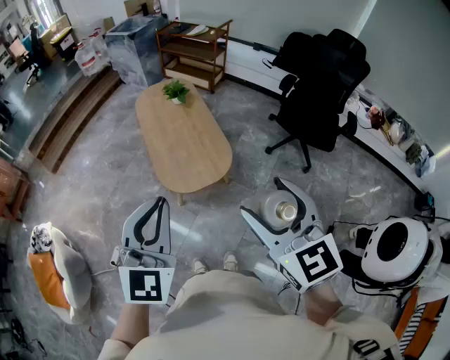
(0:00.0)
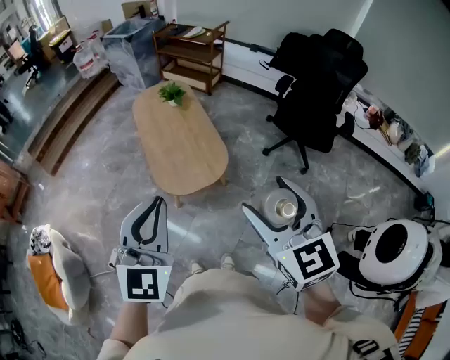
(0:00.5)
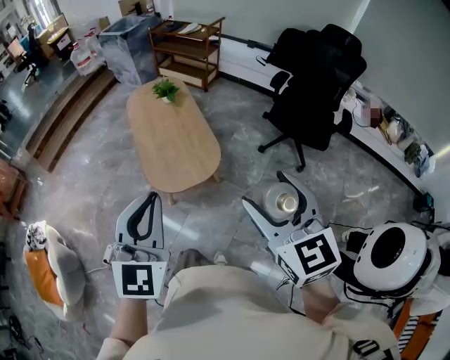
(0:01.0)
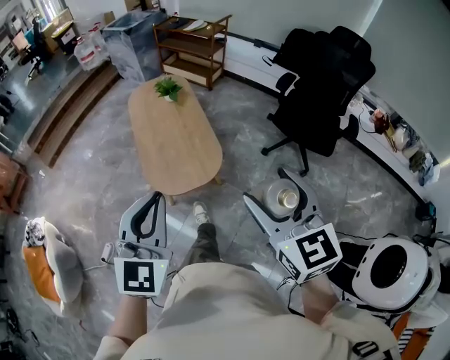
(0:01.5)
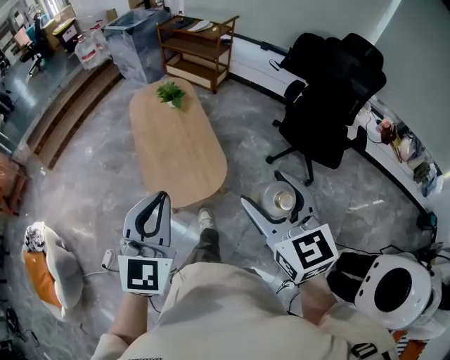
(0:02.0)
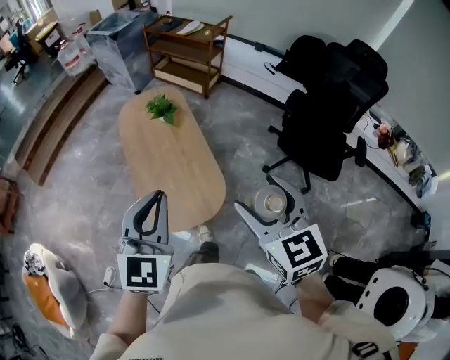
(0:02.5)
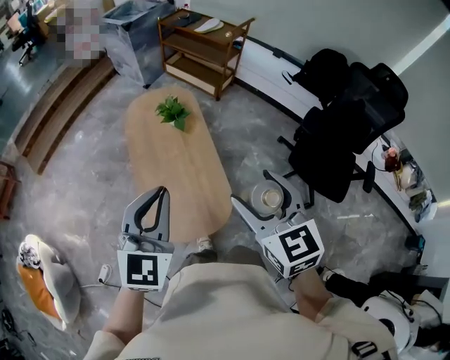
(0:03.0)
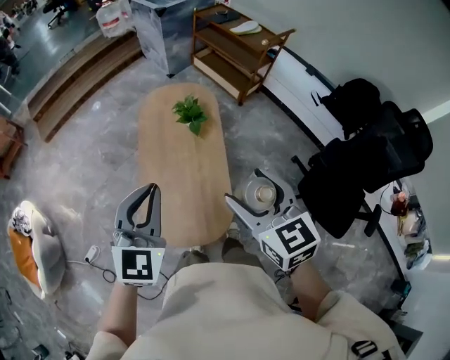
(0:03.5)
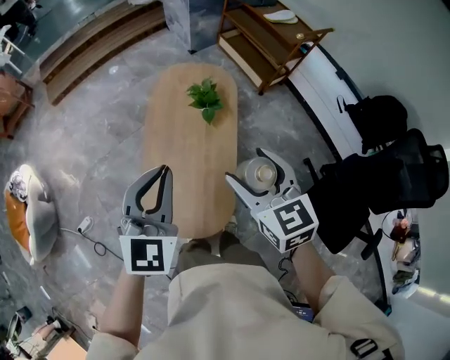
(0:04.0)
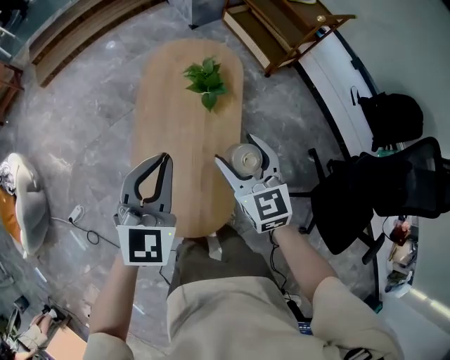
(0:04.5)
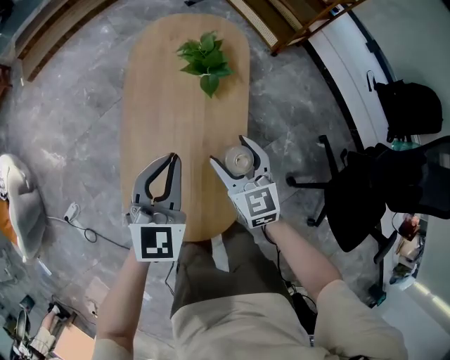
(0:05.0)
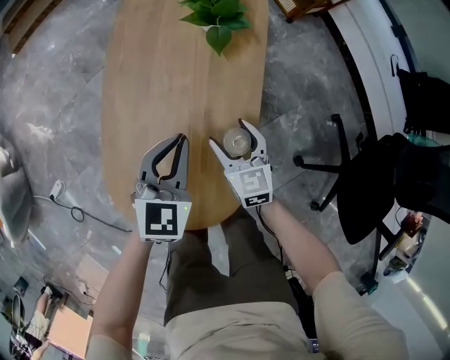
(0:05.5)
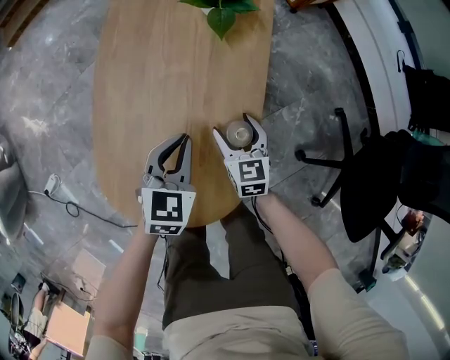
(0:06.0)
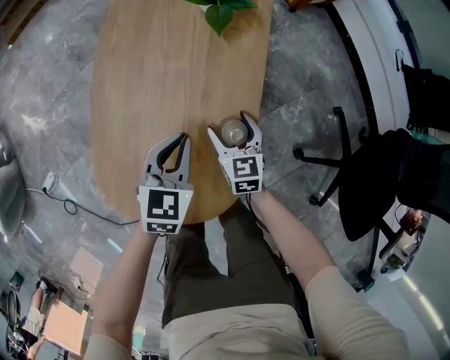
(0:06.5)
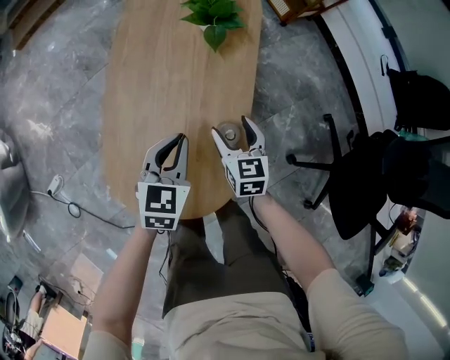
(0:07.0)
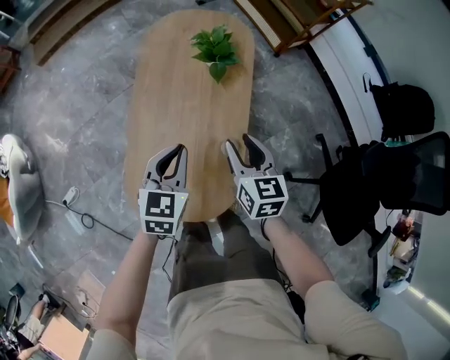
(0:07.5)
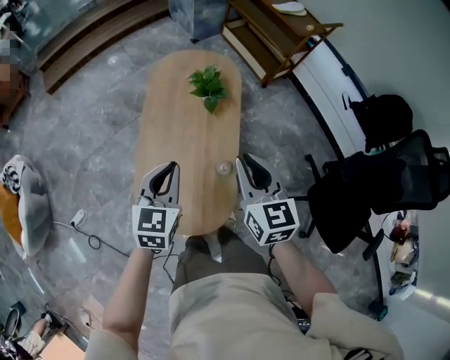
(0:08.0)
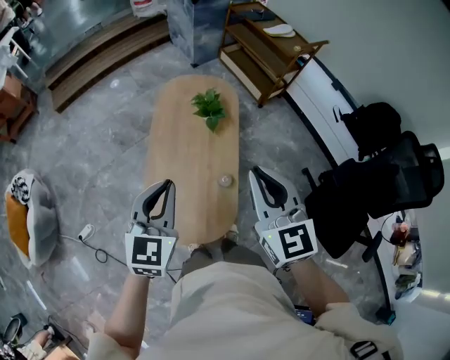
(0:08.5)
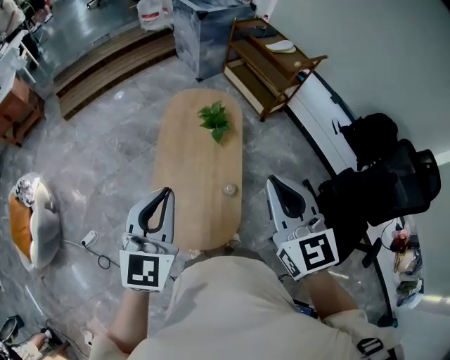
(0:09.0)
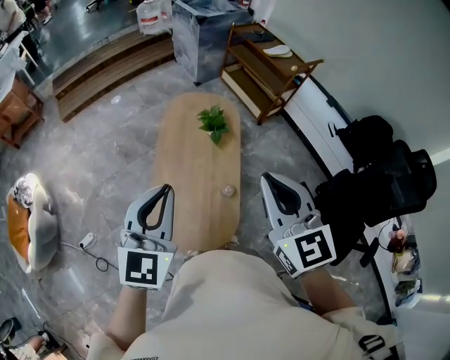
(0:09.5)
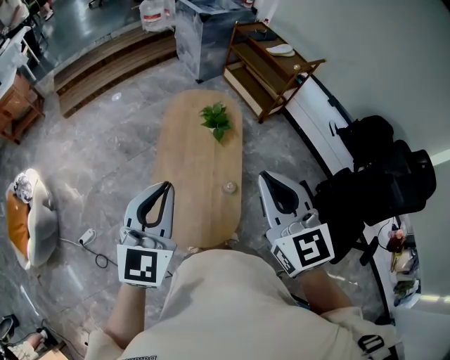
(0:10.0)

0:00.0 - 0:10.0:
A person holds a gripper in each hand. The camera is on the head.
0:00.0 - 0:02.0: The left gripper moves forward, to the right and downward, some 15 cm. Meanwhile the right gripper goes about 20 cm forward and to the right.
0:02.0 - 0:04.0: The pair of grippers is taken some 50 cm. The left gripper swivels approximately 20 degrees, while the right gripper turns by approximately 30 degrees.
0:04.0 - 0:06.0: The two grippers go some 50 cm downward. The left gripper swivels about 30 degrees.
0:06.0 - 0:08.0: The two grippers go roughly 40 cm upward. The right gripper closes.
0:08.0 - 0:10.0: Both grippers travel together upward and backward, some 25 cm.

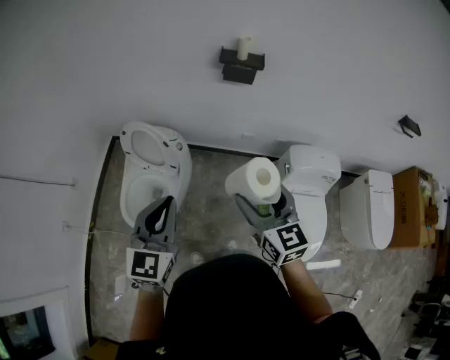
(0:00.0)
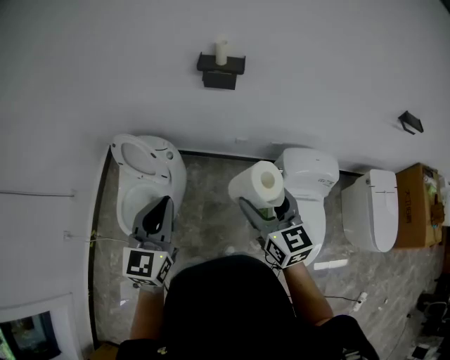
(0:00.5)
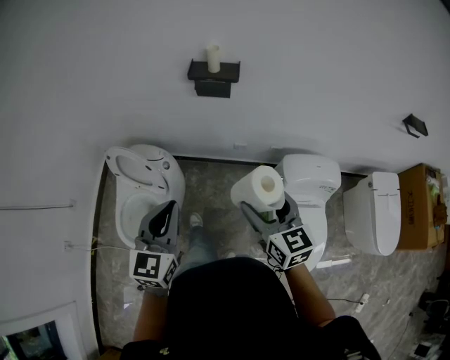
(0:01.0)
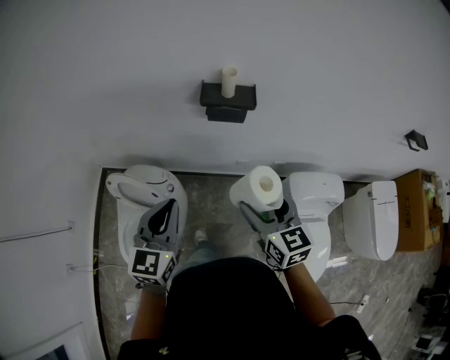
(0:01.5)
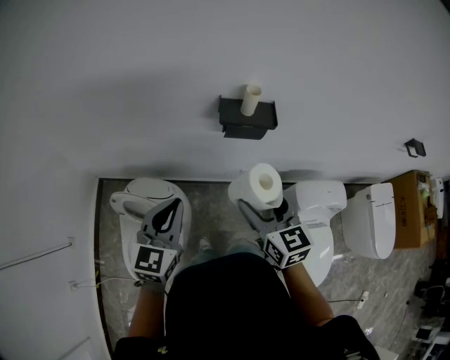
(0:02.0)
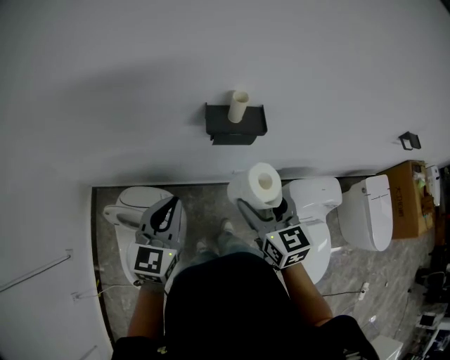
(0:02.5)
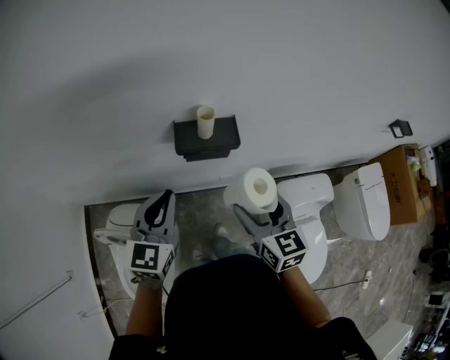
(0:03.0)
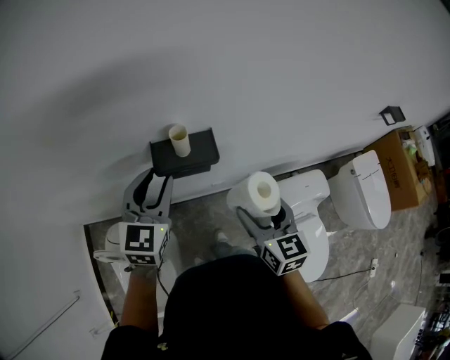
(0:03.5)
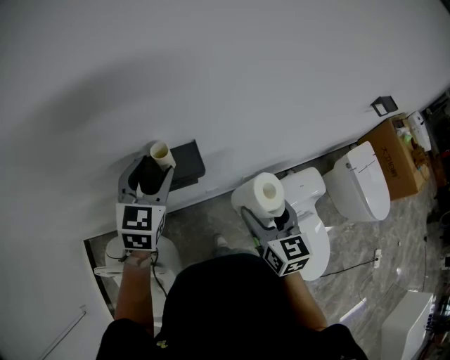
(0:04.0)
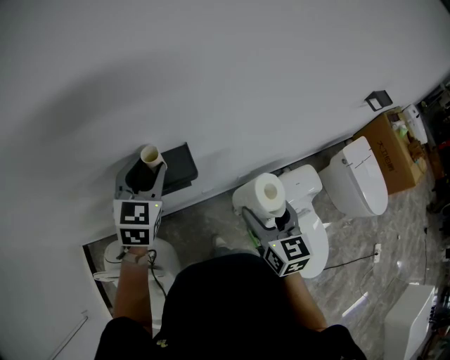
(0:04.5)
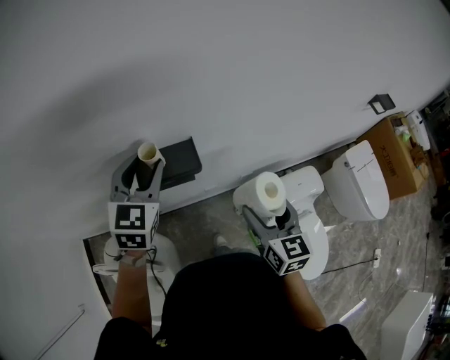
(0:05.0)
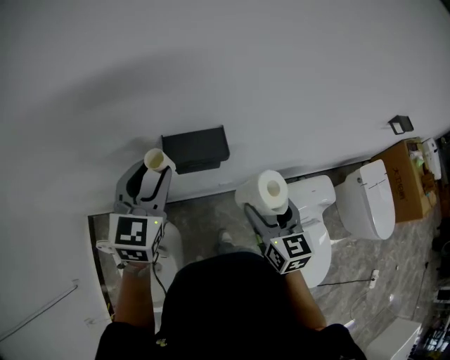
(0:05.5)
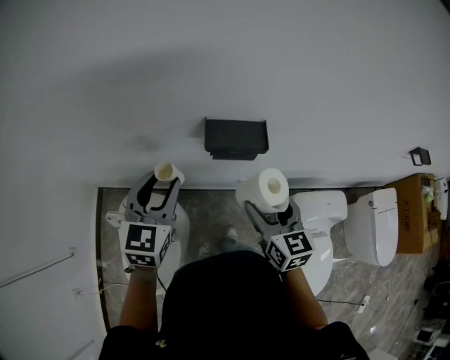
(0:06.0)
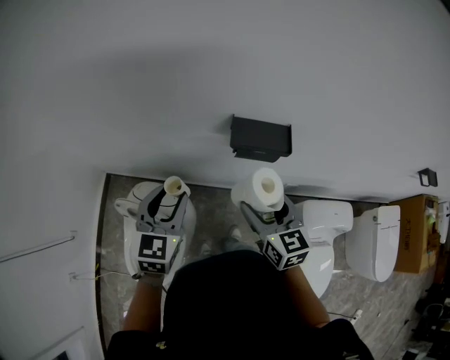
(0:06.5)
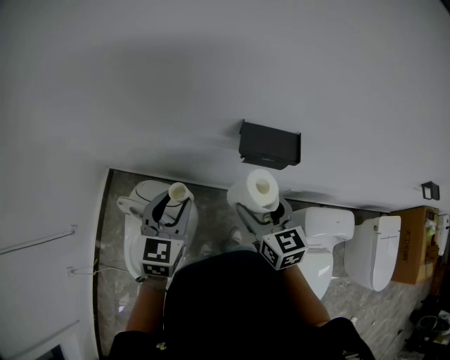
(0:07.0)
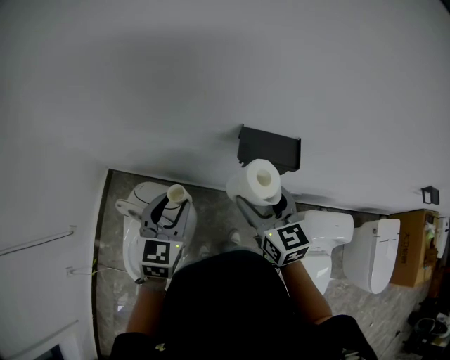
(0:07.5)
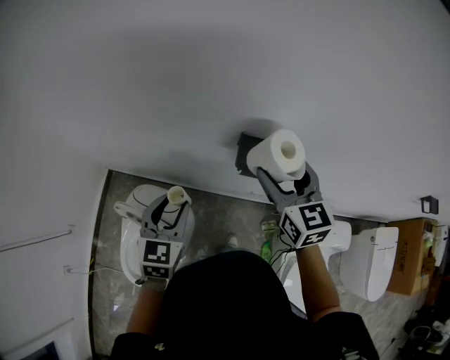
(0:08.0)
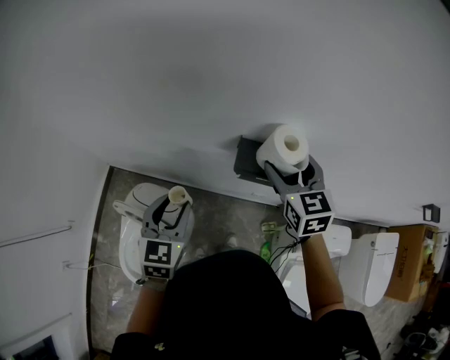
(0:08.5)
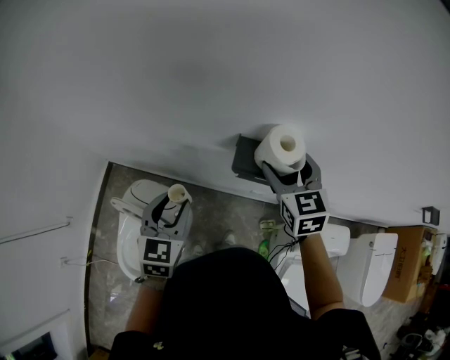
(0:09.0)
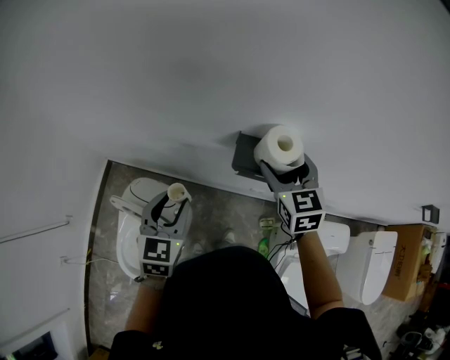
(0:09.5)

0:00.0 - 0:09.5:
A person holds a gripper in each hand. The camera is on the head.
0:00.0 - 0:02.0: The two grippers go some 30 cm forward.
0:02.0 - 0:04.0: The right gripper shifts about 20 cm to the right and forward, and turns by some 20 degrees; the left gripper moves forward and to the right, about 35 cm, and opens its fingers.
0:04.0 - 0:05.5: The left gripper shifts some 10 cm backward and to the left.
0:05.5 - 0:07.5: The right gripper is displaced to the left by approximately 20 cm, and rotates some 30 degrees; the left gripper heads to the left, downward and backward, covering roughly 20 cm, and swivels about 20 degrees.
0:07.5 - 0:09.5: The right gripper heads forward and to the right, covering some 15 cm.

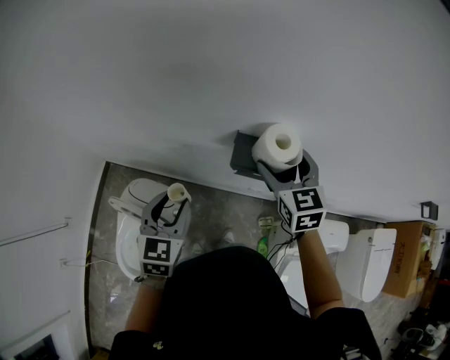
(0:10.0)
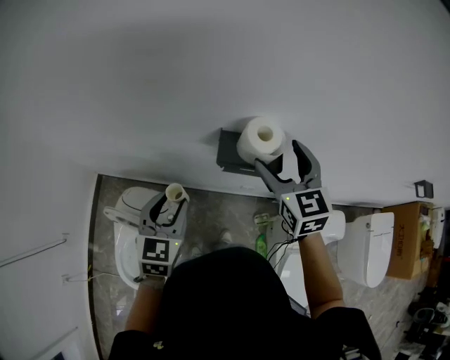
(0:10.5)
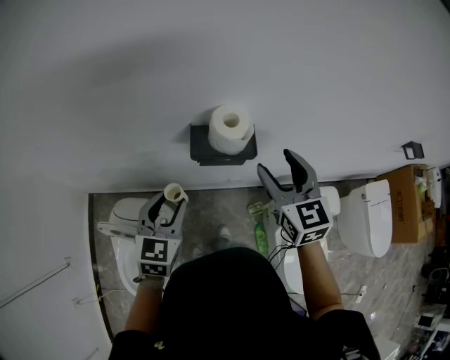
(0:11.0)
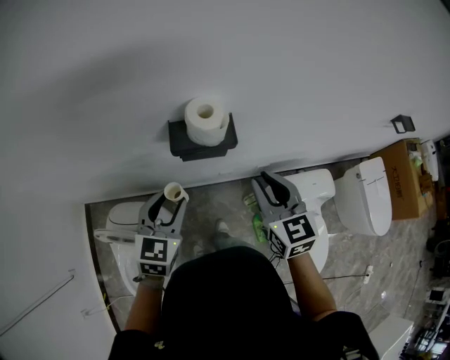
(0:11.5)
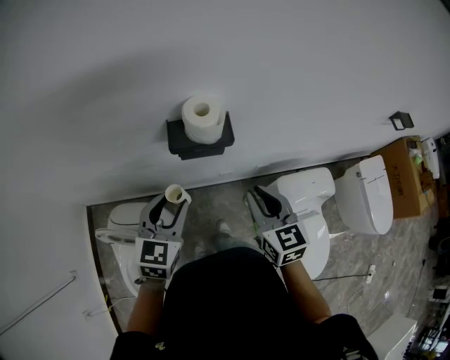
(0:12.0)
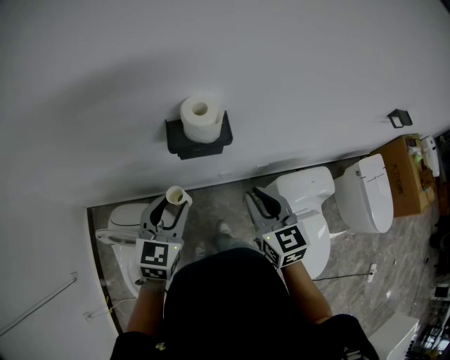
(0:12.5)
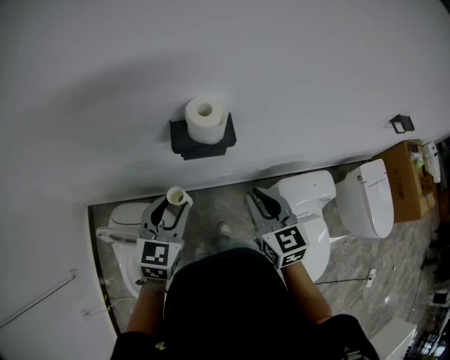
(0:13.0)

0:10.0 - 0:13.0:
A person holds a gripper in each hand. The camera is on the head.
0:10.0 - 0:11.5: The right gripper goes some 20 cm backward and to the right, and closes up. Meanwhile the left gripper shifts about 10 cm to the right, and turns by about 20 degrees.
0:11.5 - 0:13.0: The right gripper shifts by roughly 5 cm.

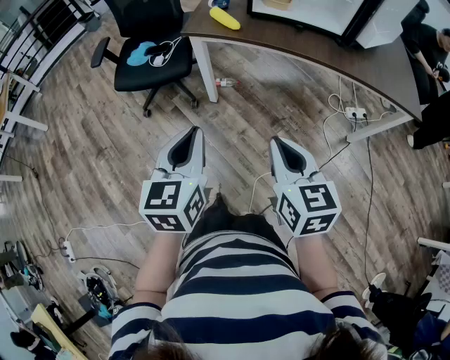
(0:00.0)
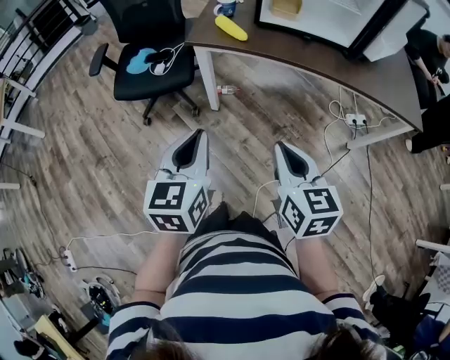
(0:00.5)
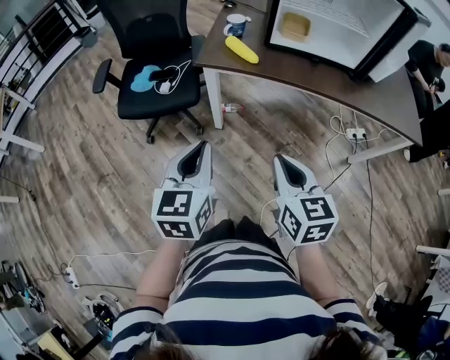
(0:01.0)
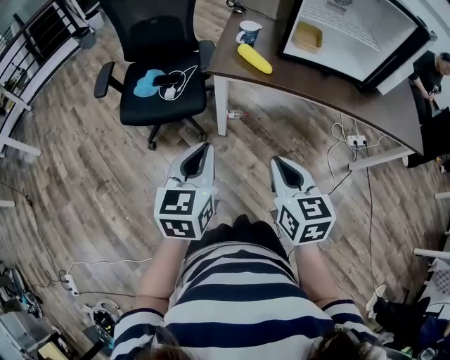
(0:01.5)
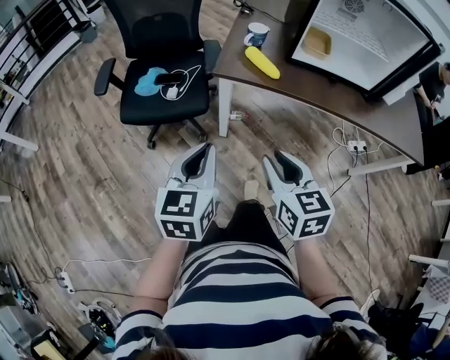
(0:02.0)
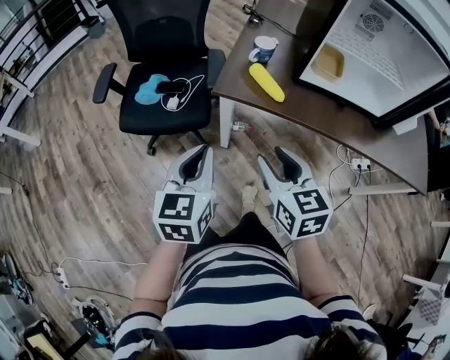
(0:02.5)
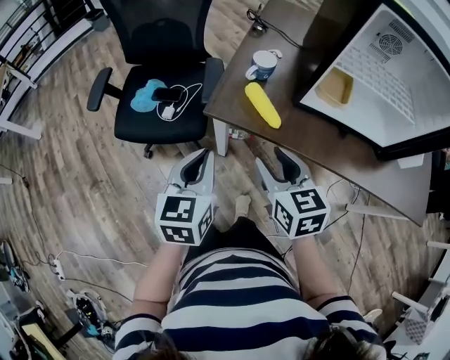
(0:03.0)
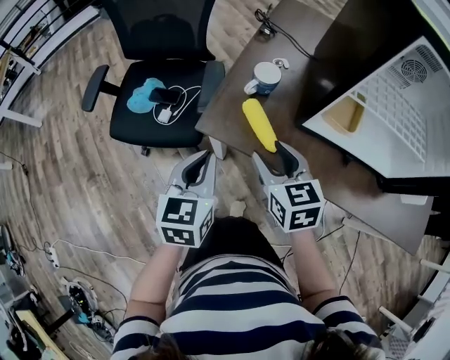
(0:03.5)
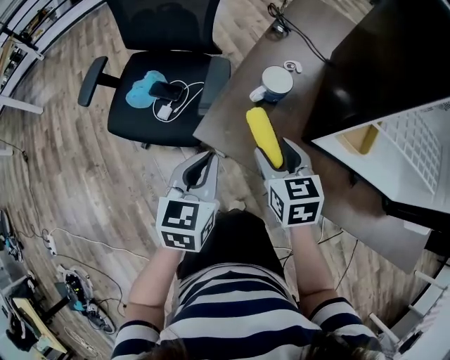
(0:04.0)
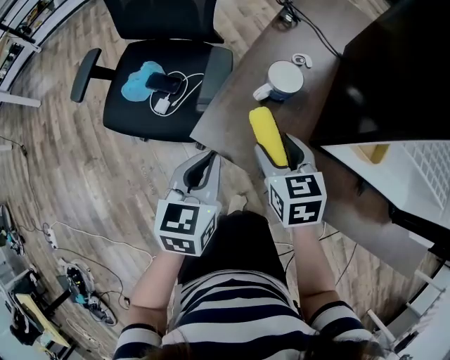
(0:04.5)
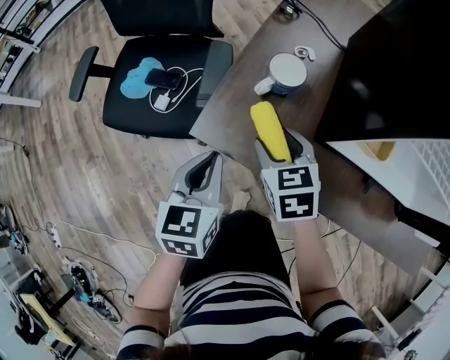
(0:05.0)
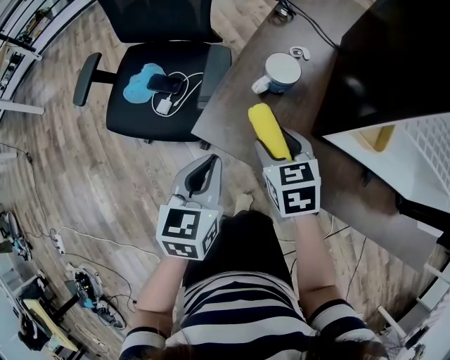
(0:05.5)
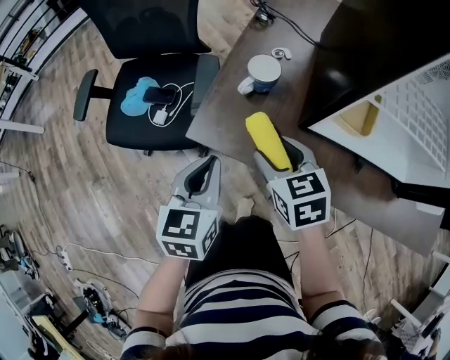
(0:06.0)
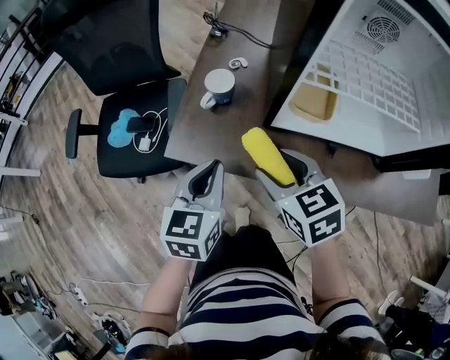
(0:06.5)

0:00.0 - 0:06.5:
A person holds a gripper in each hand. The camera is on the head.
0:00.0 - 0:02.0: The two grippers go some 25 cm forward and to the left.
0:02.0 - 0:04.5: Both grippers move forward, about 35 cm. The right gripper rotates about 20 degrees, and opens.
0:04.5 - 0:06.5: The right gripper goes approximately 15 cm backward, upward and to the right. Meanwhile the left gripper heads to the right and upward, covering about 10 cm.
